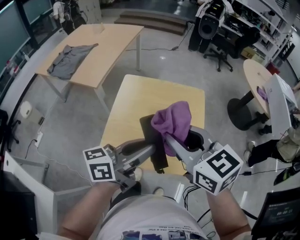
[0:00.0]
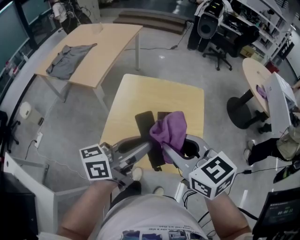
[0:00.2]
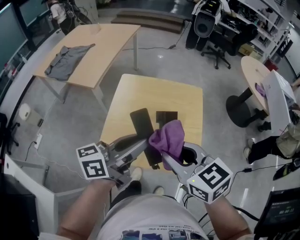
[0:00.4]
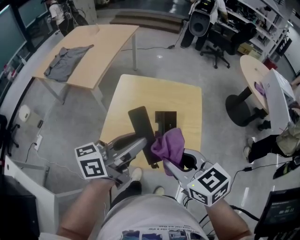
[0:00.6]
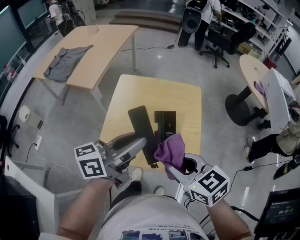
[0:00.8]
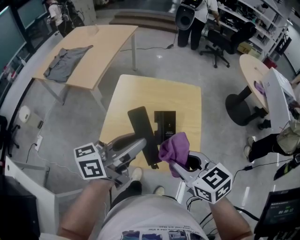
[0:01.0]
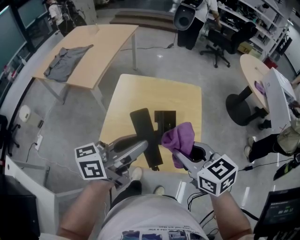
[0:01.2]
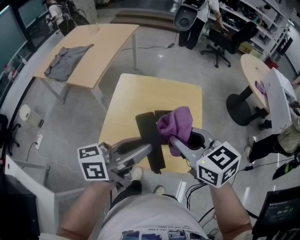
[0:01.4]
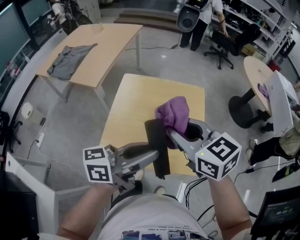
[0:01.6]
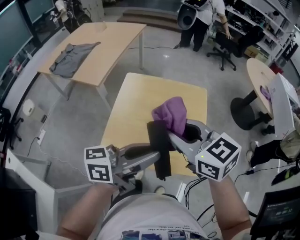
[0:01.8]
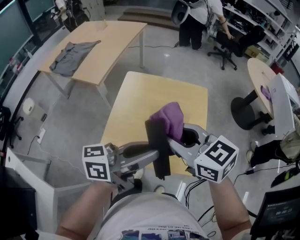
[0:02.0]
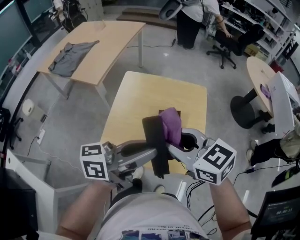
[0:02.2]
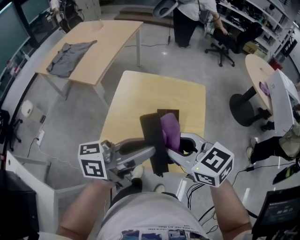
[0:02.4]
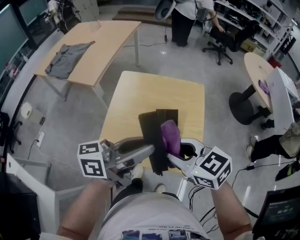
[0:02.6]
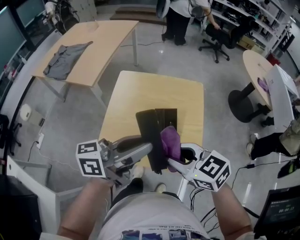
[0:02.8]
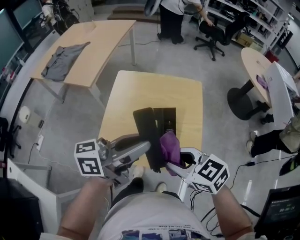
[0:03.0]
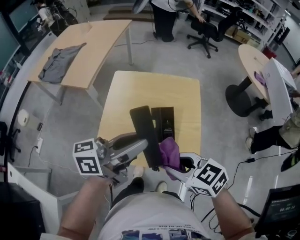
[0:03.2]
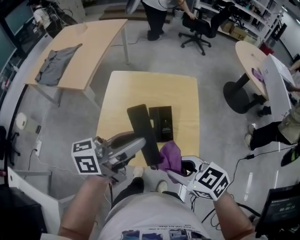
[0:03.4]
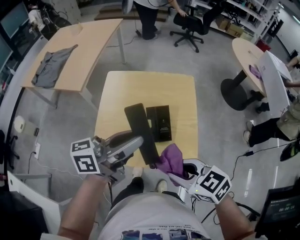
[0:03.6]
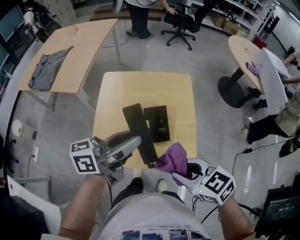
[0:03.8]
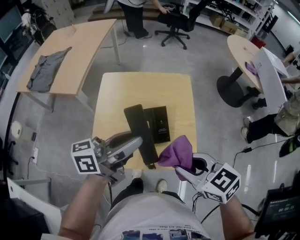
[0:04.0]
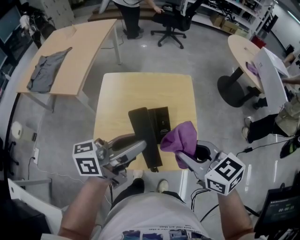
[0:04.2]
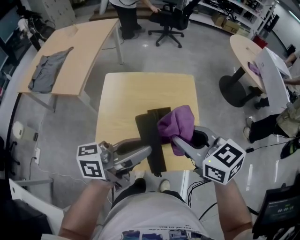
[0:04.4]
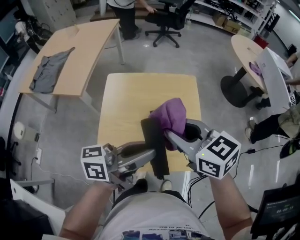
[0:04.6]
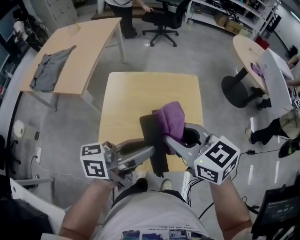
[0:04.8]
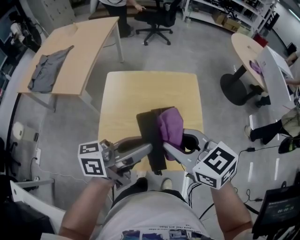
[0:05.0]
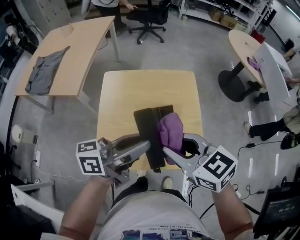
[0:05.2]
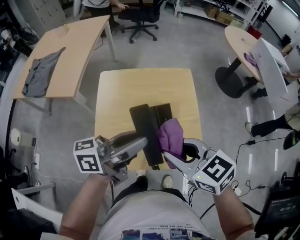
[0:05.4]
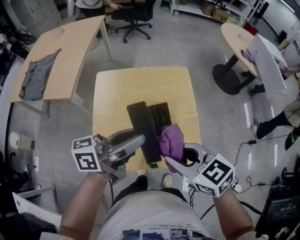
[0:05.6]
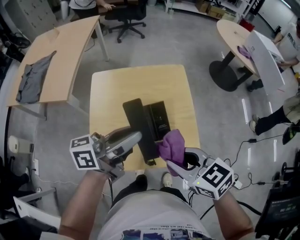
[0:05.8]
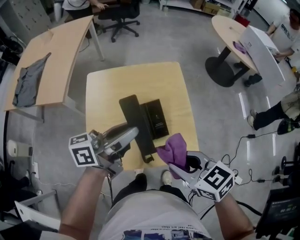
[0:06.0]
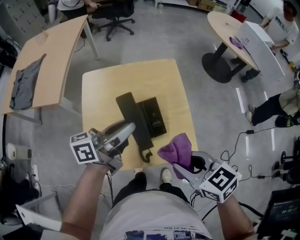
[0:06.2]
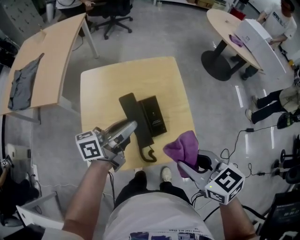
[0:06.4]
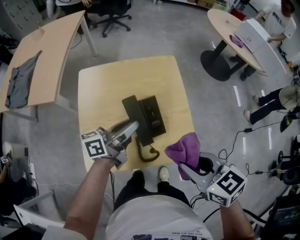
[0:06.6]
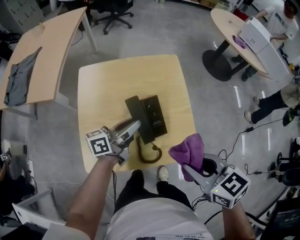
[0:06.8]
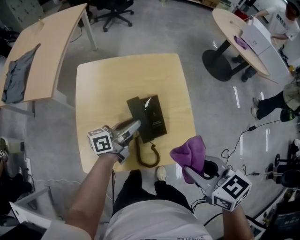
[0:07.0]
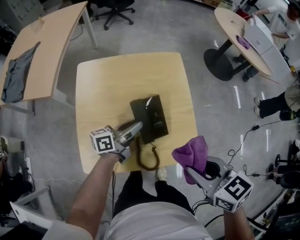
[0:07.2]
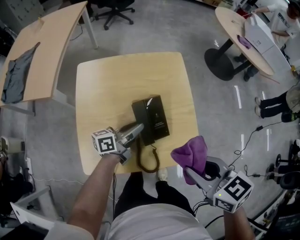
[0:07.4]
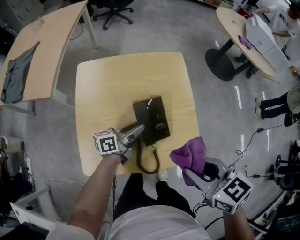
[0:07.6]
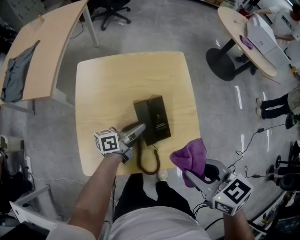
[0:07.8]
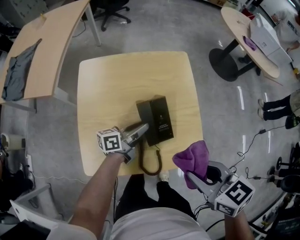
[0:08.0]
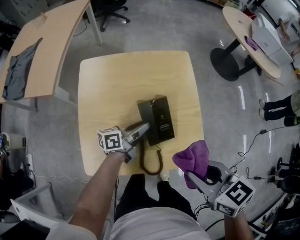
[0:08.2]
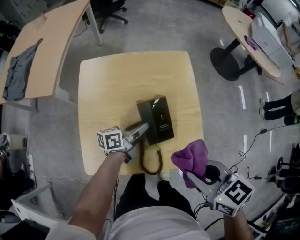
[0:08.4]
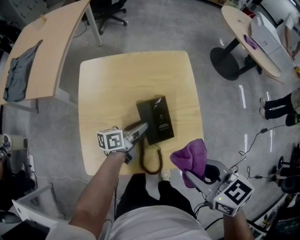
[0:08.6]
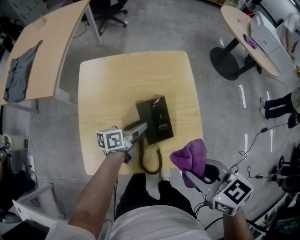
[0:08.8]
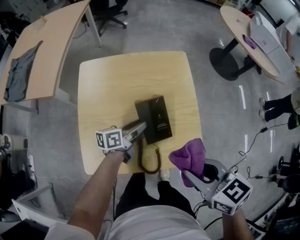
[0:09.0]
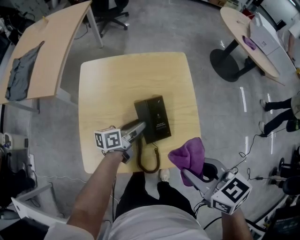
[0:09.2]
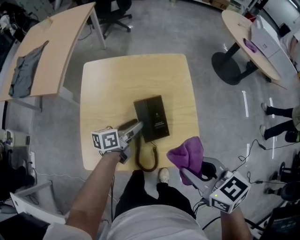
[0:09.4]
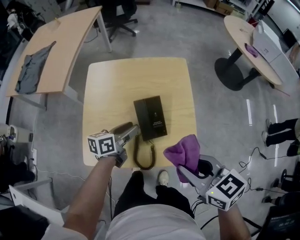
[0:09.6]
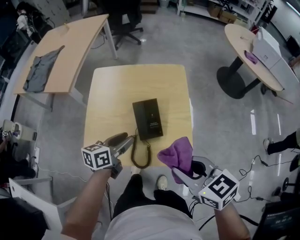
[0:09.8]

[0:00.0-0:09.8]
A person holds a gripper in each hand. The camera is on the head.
0:01.4 to 0:02.8: The right gripper shifts approximately 10 cm downward and backward.
0:02.8 to 0:04.2: The right gripper shifts roughly 5 cm to the right, and reaches some 5 cm backward, then returns.
0:04.2 to 0:05.6: The right gripper is displaced to the left by some 5 cm.
0:05.6 to 0:07.0: The right gripper goes roughly 10 cm to the right. Meanwhile the left gripper heads downward, covering about 20 cm.
0:07.0 to 0:08.4: The left gripper shifts approximately 5 cm downward.
0:08.4 to 0:09.8: The left gripper heads backward and upward, covering some 10 cm, turns by some 30 degrees, and opens up.

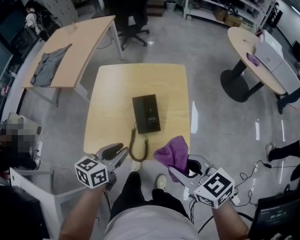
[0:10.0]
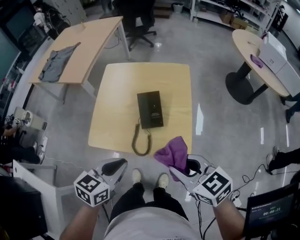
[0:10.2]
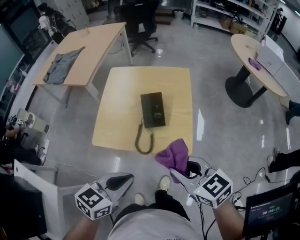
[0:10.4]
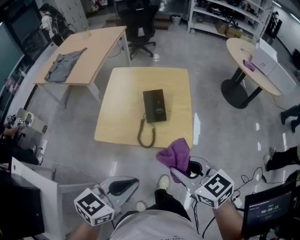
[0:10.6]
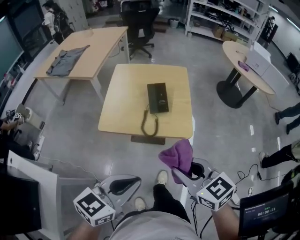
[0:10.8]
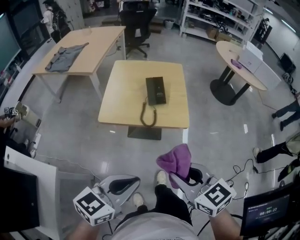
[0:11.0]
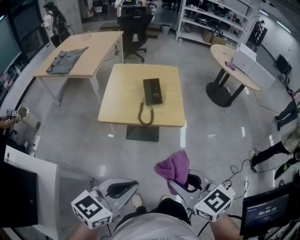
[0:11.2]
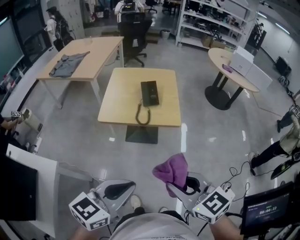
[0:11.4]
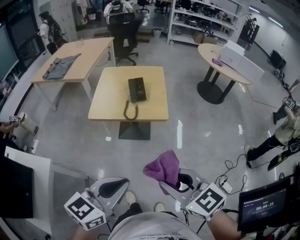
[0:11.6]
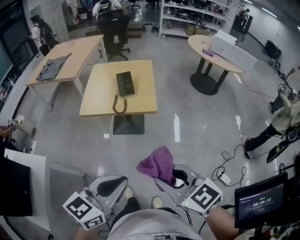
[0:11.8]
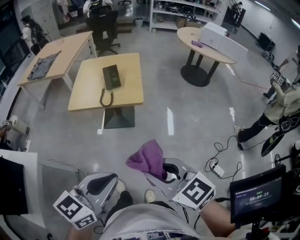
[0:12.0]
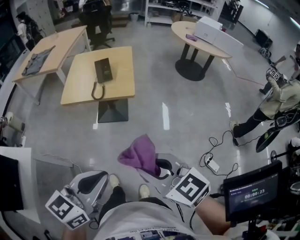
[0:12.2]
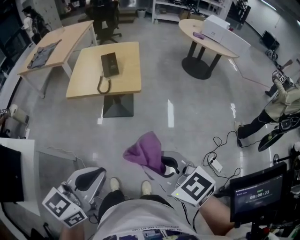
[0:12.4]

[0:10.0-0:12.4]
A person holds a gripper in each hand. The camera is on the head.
0:10.0 to 0:11.2: The grippers both shift backward by roughly 30 cm. The left gripper changes its angle by approximately 20 degrees, and closes up.
0:11.2 to 0:12.4: The two grippers go some 15 cm backward and to the right.

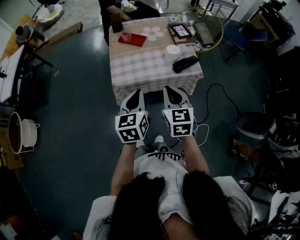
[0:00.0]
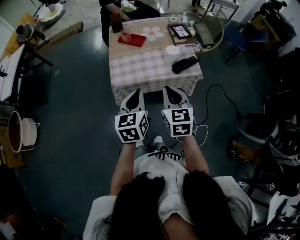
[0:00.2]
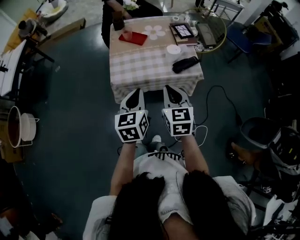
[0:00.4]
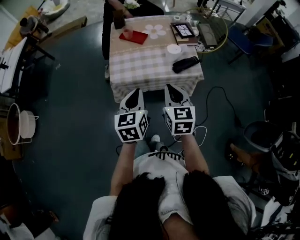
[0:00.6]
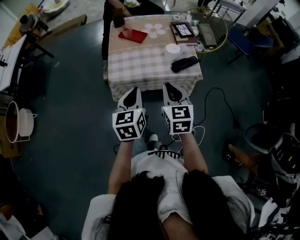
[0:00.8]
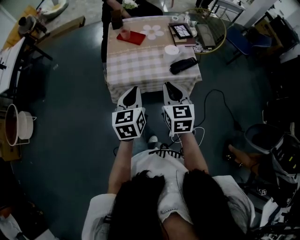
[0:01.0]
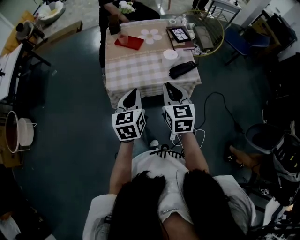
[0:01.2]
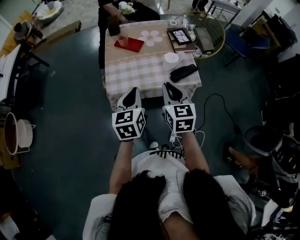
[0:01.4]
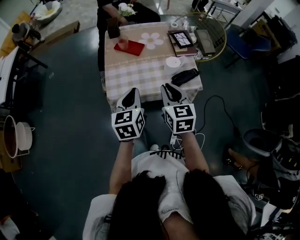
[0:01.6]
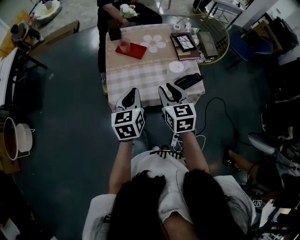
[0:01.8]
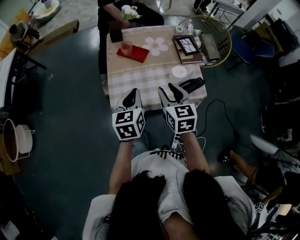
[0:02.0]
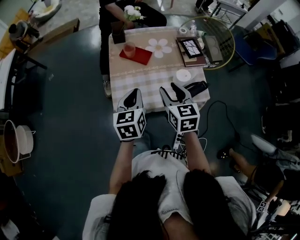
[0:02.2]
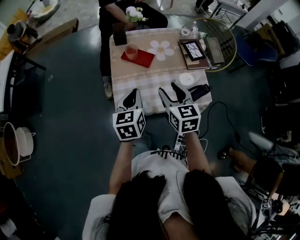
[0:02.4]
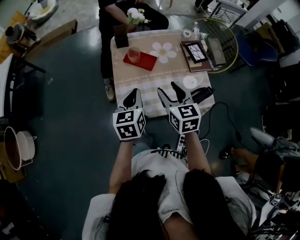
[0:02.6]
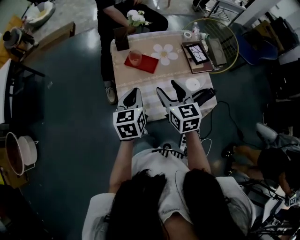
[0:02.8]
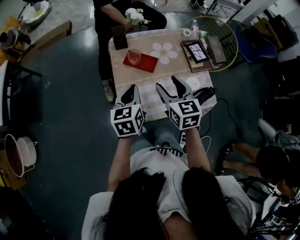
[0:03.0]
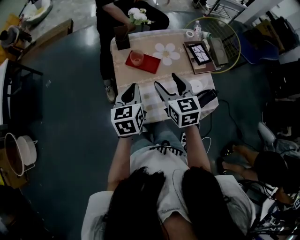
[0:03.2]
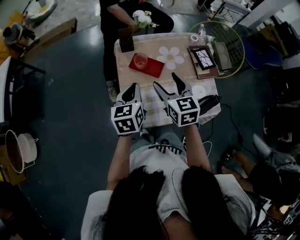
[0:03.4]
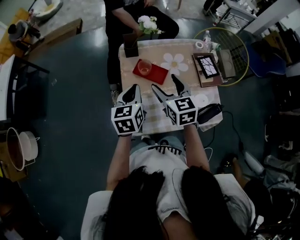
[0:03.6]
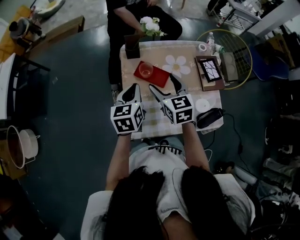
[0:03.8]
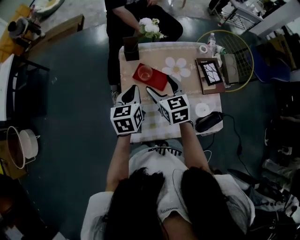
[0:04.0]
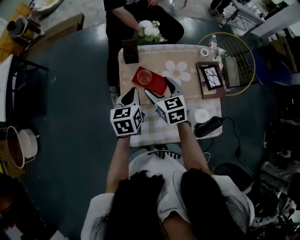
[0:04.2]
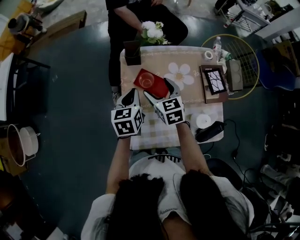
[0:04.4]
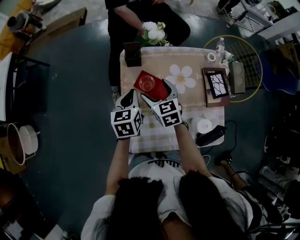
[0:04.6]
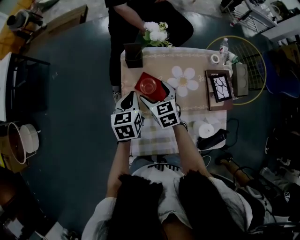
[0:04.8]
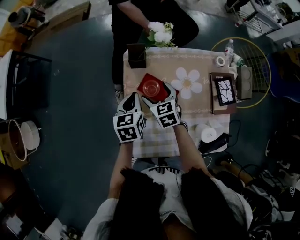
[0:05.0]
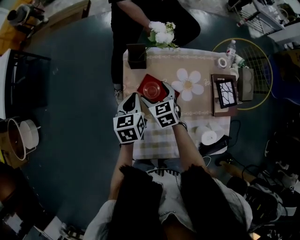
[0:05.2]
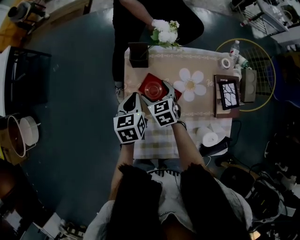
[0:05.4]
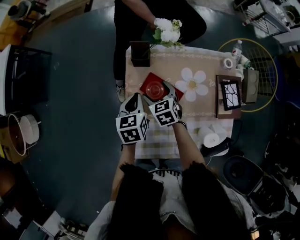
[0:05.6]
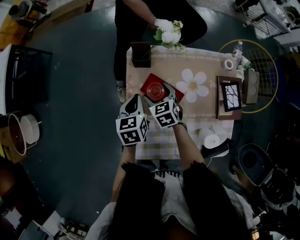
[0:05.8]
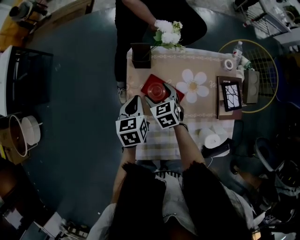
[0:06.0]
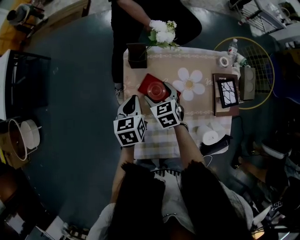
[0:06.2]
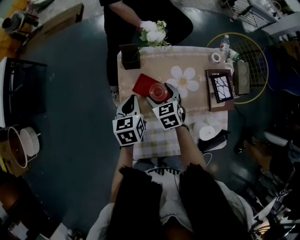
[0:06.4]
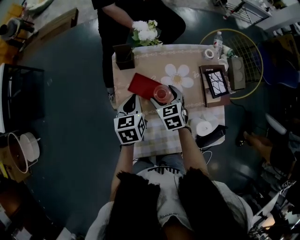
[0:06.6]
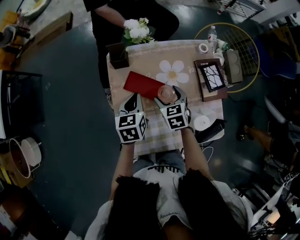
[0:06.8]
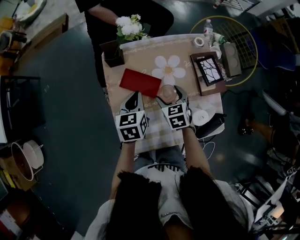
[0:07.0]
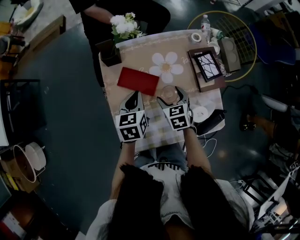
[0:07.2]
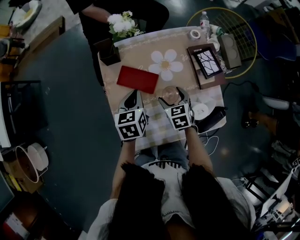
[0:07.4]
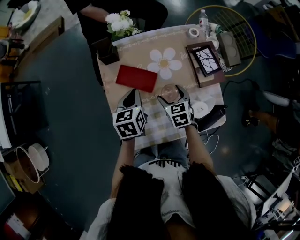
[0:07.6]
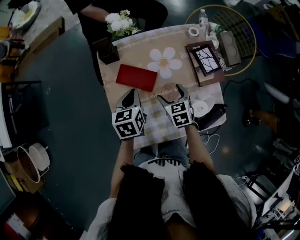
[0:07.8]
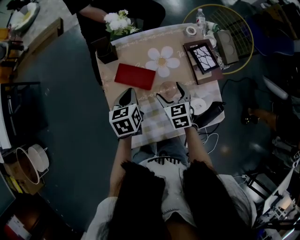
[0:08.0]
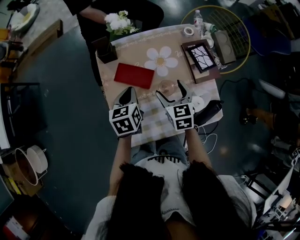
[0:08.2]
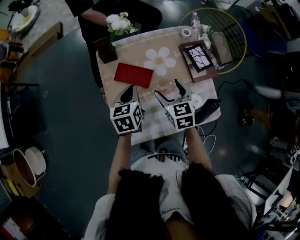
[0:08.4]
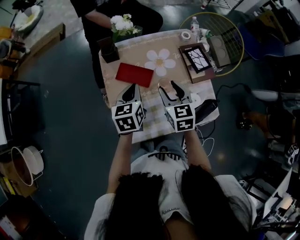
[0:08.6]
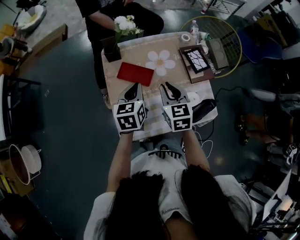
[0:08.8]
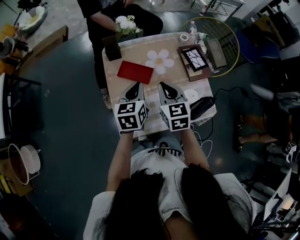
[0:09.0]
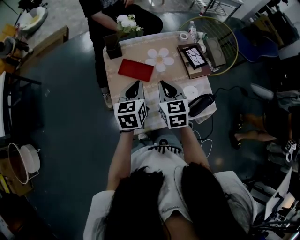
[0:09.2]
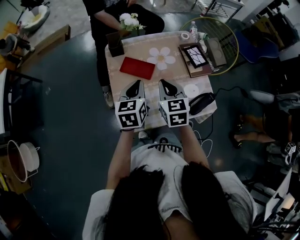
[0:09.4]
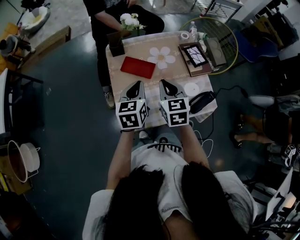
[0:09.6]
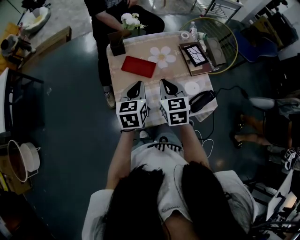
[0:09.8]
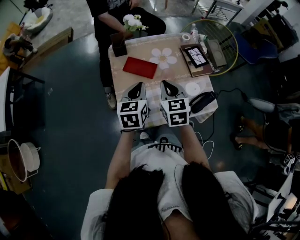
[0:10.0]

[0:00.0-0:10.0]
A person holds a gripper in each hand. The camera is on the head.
0:00.0 to 0:01.4: Both grippers move forward, roughly 10 cm.
0:01.4 to 0:02.8: Both grippers travel together forward and to the left, some 20 cm. The right gripper opens.
0:02.8 to 0:04.2: Both grippers travel together forward, roughly 15 cm.
0:04.2 to 0:05.8: The grippers both shift downward and forward by approximately 15 cm.
0:05.8 to 0:07.2: The left gripper moves to the right and backward, about 10 cm, while the right gripper shifts roughly 20 cm to the right and backward, and swivels some 20 degrees.
0:07.2 to 0:08.6: The right gripper moves upward, roughly 15 cm, and closes up, while the left gripper is displaced upward by about 5 cm.
0:08.6 to 0:10.0: The two grippers go approximately 10 cm backward. The right gripper closes up.

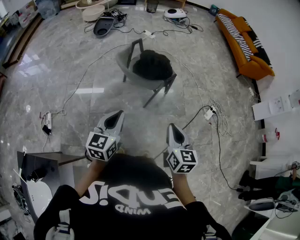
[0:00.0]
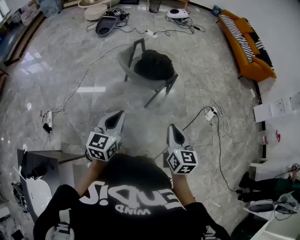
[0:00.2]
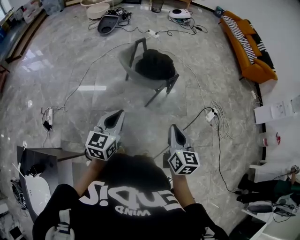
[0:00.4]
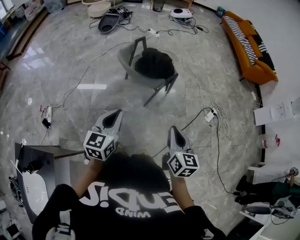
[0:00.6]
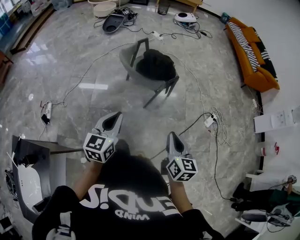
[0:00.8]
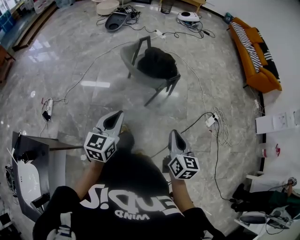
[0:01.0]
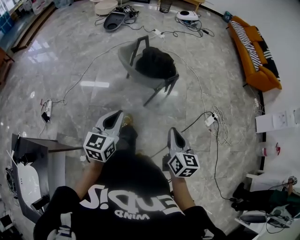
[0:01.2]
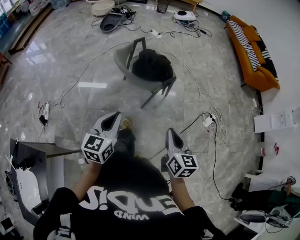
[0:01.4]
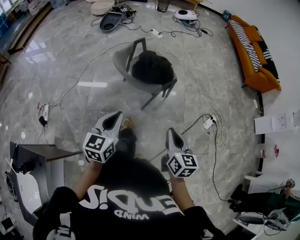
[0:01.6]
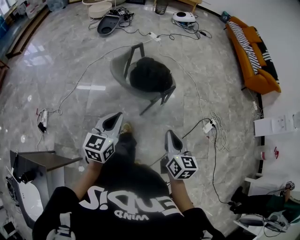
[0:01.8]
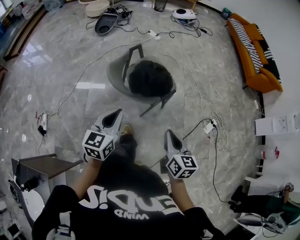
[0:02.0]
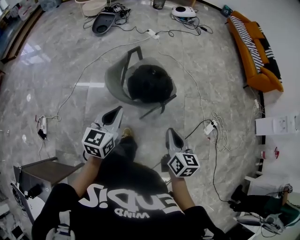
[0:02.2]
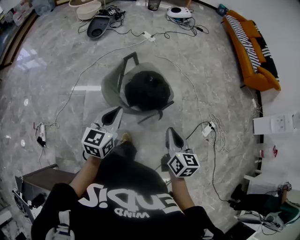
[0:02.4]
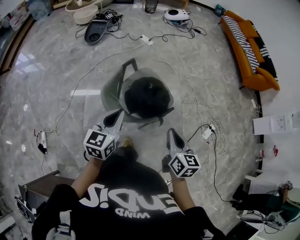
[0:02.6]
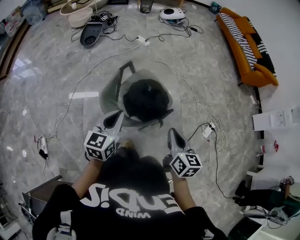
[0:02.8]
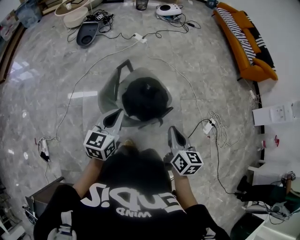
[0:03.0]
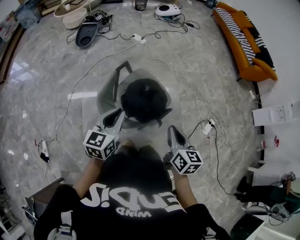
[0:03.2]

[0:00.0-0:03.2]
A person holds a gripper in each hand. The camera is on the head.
0:00.0 to 0:01.6: The grippers both shift forward and to the right by about 10 cm.
0:01.6 to 0:03.2: Both grippers travel together forward, about 35 cm.
